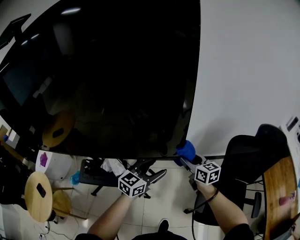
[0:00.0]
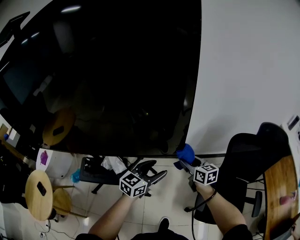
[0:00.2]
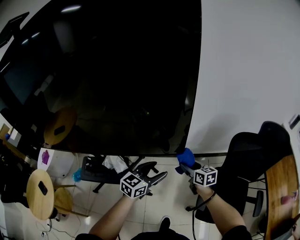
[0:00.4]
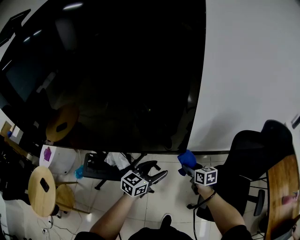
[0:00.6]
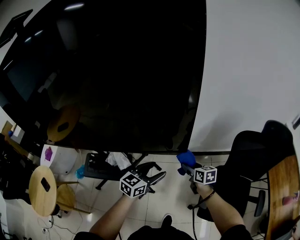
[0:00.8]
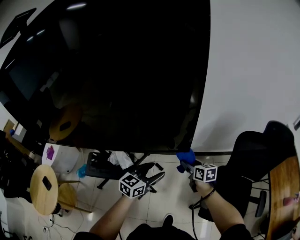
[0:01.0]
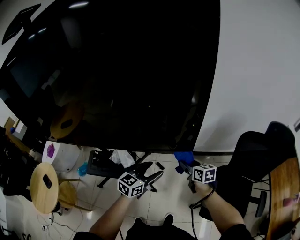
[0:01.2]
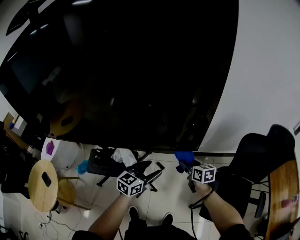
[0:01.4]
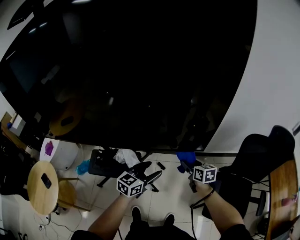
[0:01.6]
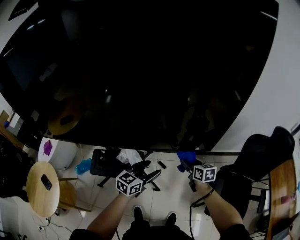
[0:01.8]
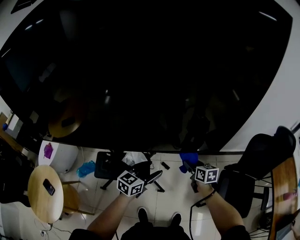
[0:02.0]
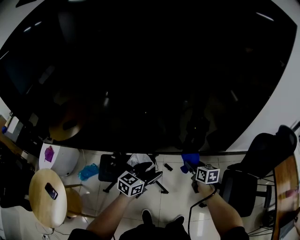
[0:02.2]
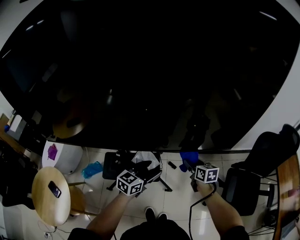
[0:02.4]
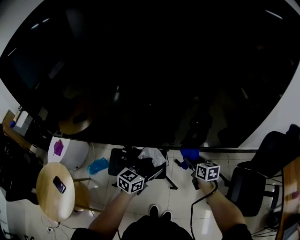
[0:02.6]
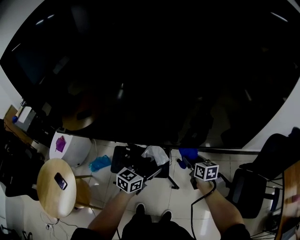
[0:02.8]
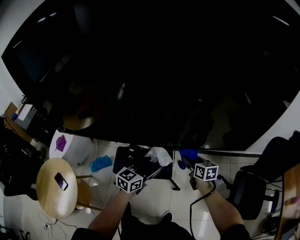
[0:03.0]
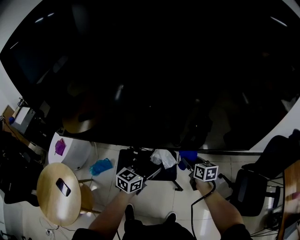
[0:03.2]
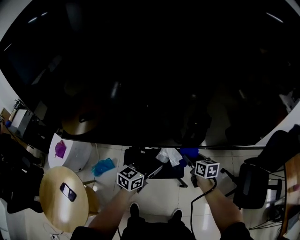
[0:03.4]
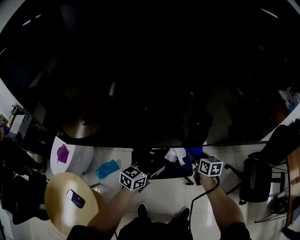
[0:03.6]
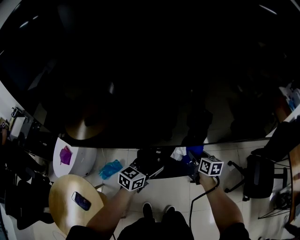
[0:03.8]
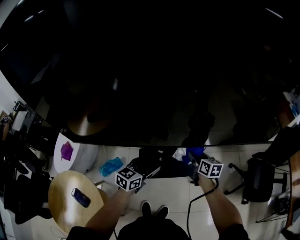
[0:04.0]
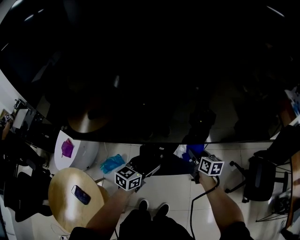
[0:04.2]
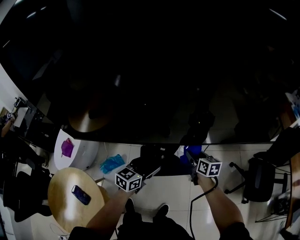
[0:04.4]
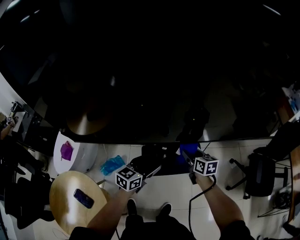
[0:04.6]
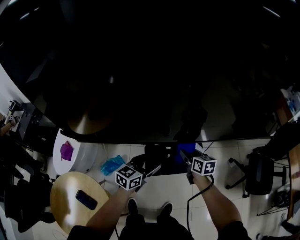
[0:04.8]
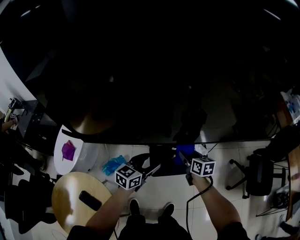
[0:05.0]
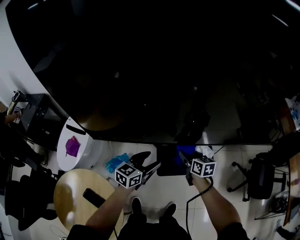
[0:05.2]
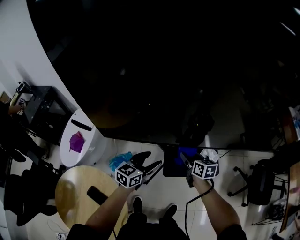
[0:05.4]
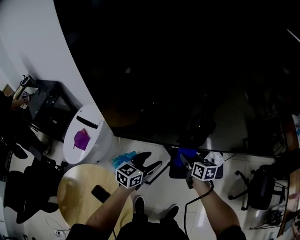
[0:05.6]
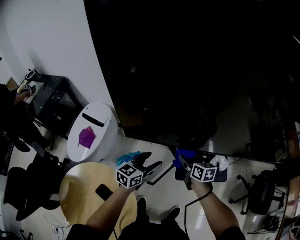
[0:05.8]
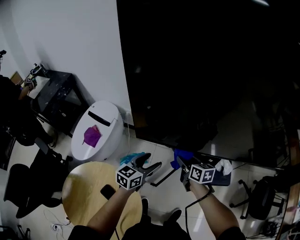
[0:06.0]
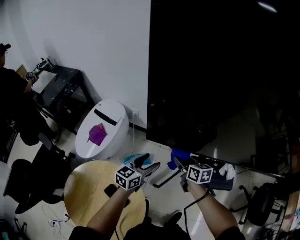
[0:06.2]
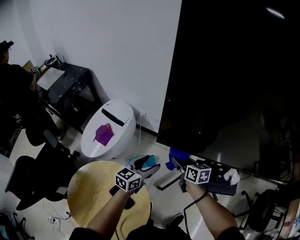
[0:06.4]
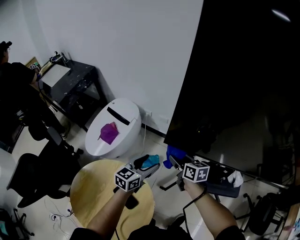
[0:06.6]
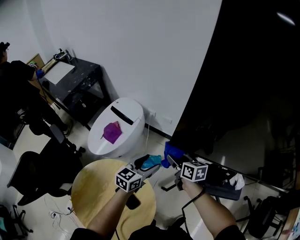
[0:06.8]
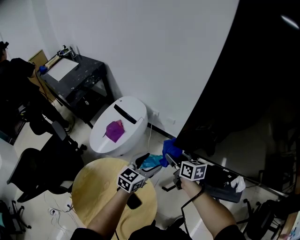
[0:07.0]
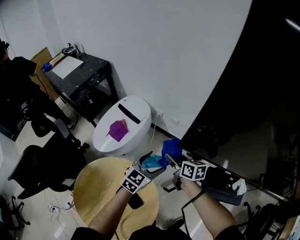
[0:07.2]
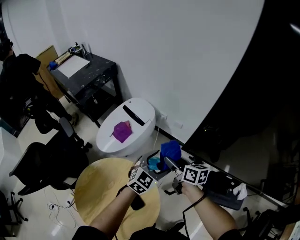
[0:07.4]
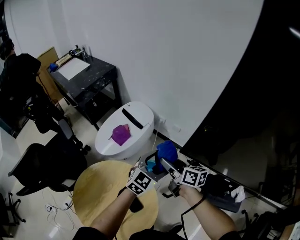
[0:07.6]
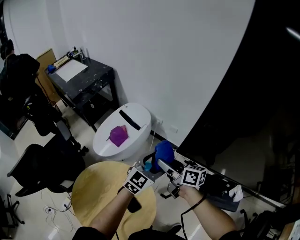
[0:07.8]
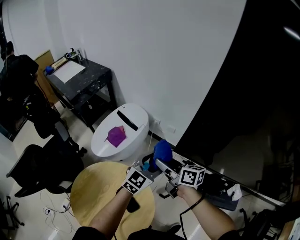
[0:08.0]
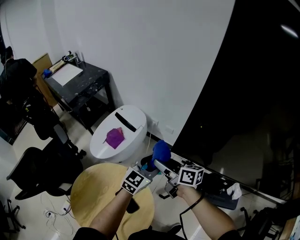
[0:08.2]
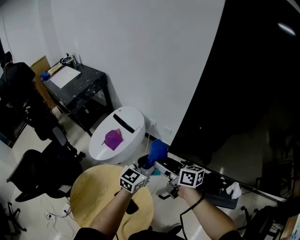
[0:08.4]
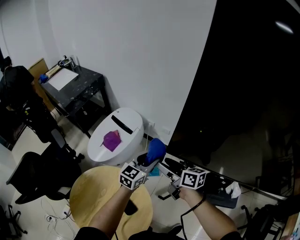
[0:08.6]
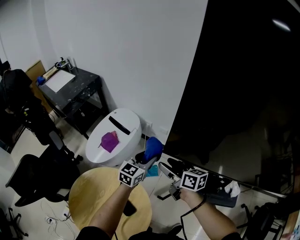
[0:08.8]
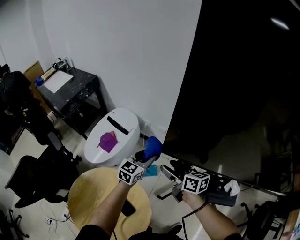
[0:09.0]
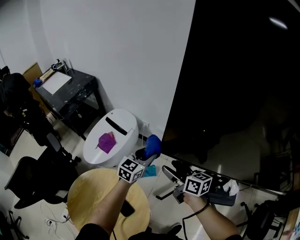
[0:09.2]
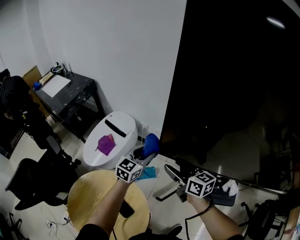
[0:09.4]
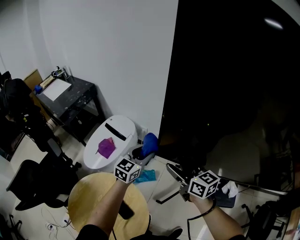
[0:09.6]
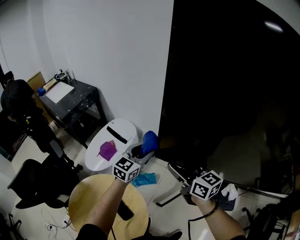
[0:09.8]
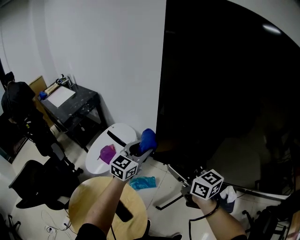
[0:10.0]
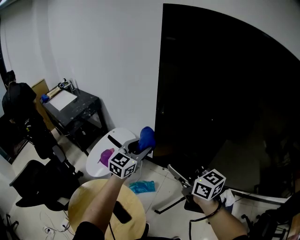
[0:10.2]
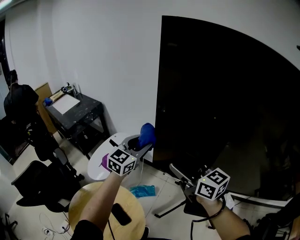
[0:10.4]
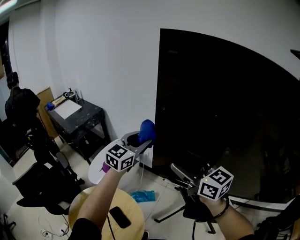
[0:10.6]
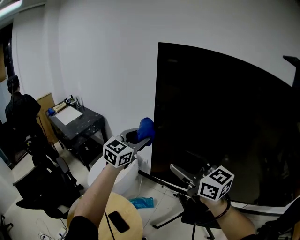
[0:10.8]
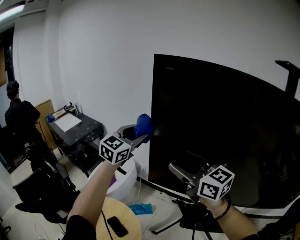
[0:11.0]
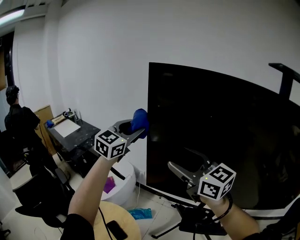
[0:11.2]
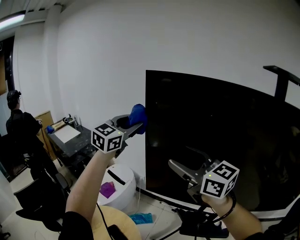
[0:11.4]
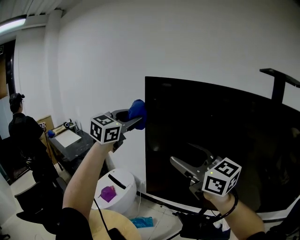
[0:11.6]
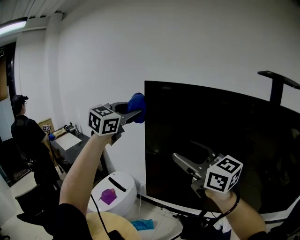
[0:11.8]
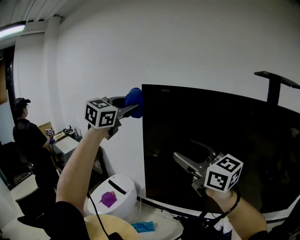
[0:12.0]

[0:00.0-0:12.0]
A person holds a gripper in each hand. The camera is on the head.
0:00.0 to 0:01.6: The left gripper shifts about 15 cm to the left, while the right gripper heads to the left and downward, covering some 15 cm.
0:01.6 to 0:03.0: The grippers both shift to the left by some 25 cm.
0:03.0 to 0:04.4: The two grippers go roughly 25 cm to the left.
0:04.4 to 0:06.0: The grippers both shift to the left by approximately 40 cm.
0:06.0 to 0:07.6: The left gripper travels to the left by approximately 15 cm, and changes its angle by some 30 degrees; the right gripper heads to the left, covering roughly 30 cm, and changes its angle by approximately 30 degrees.
0:07.6 to 0:09.0: The left gripper shifts by some 5 cm, and closes its fingers; the right gripper shifts roughly 10 cm to the right.
0:09.0 to 0:10.4: The grippers both shift upward by about 25 cm. The right gripper rotates roughly 30 degrees.
0:10.4 to 0:12.0: The right gripper is displaced upward by some 25 cm, and changes its angle by roughly 20 degrees, while the left gripper heads upward, covering some 40 cm.

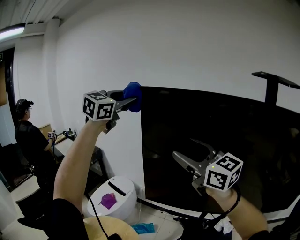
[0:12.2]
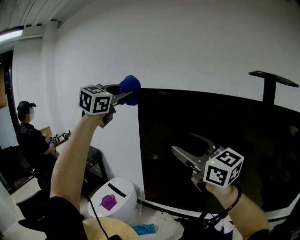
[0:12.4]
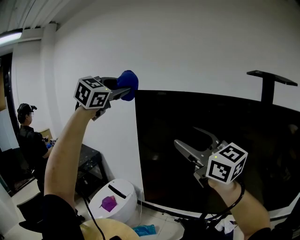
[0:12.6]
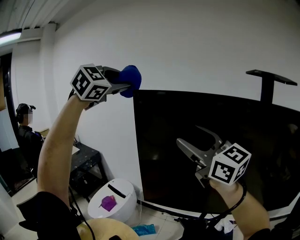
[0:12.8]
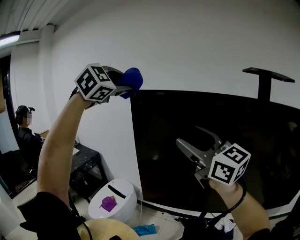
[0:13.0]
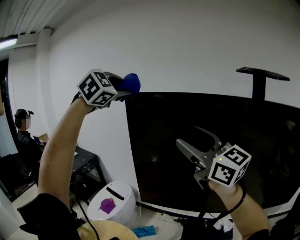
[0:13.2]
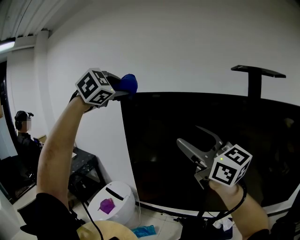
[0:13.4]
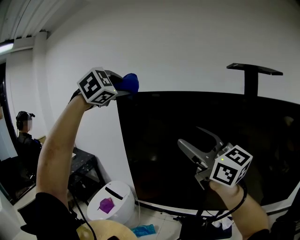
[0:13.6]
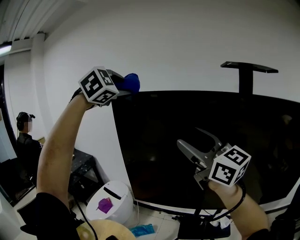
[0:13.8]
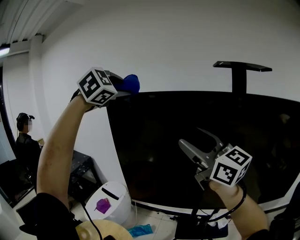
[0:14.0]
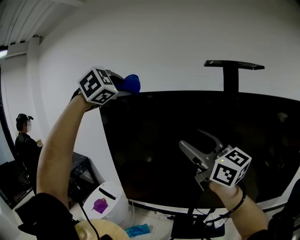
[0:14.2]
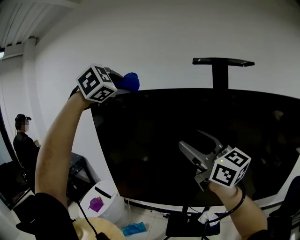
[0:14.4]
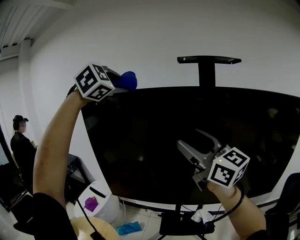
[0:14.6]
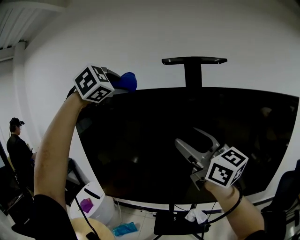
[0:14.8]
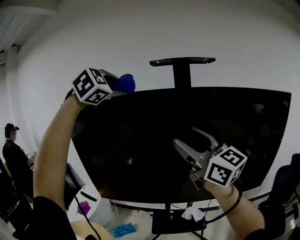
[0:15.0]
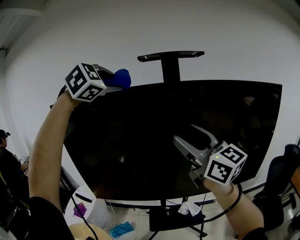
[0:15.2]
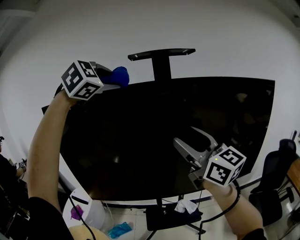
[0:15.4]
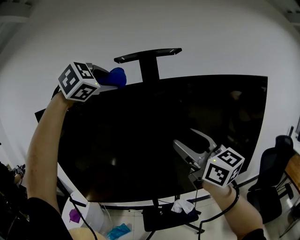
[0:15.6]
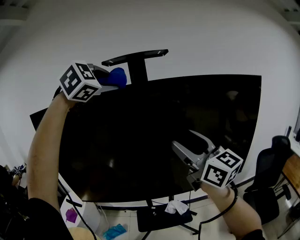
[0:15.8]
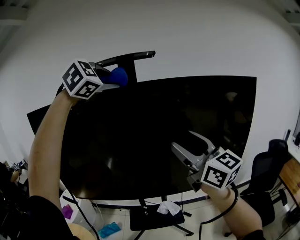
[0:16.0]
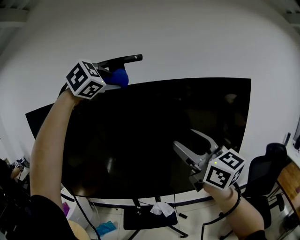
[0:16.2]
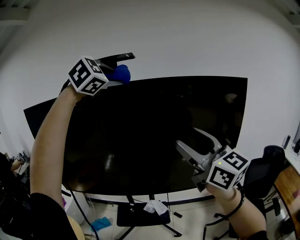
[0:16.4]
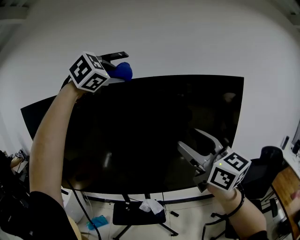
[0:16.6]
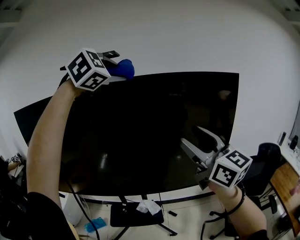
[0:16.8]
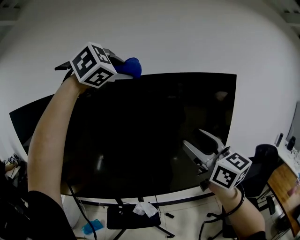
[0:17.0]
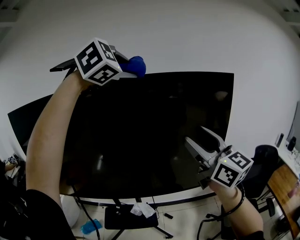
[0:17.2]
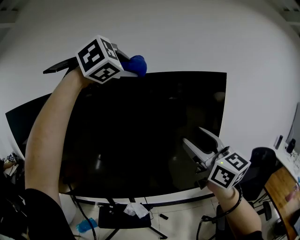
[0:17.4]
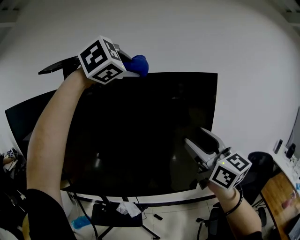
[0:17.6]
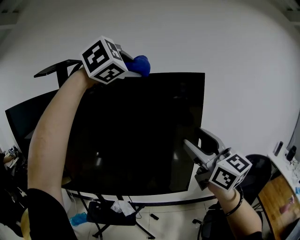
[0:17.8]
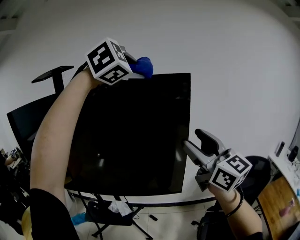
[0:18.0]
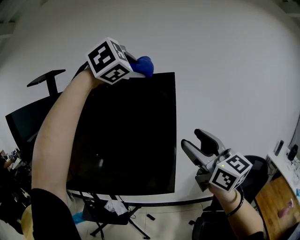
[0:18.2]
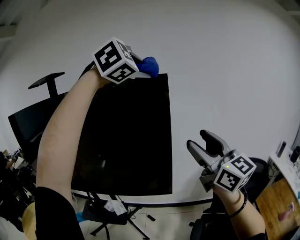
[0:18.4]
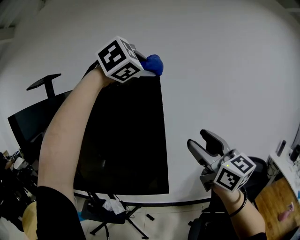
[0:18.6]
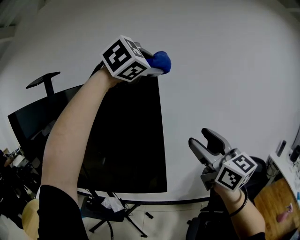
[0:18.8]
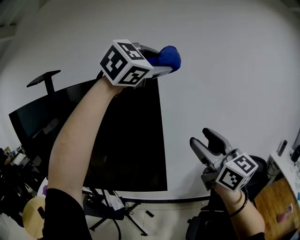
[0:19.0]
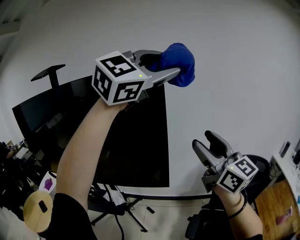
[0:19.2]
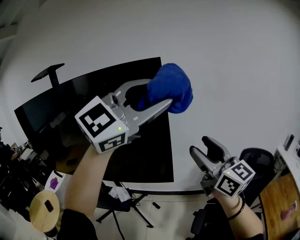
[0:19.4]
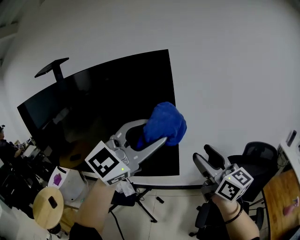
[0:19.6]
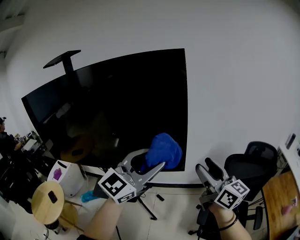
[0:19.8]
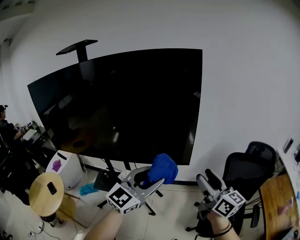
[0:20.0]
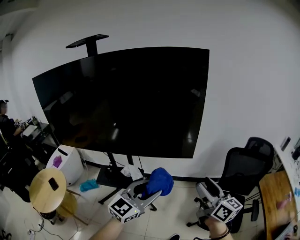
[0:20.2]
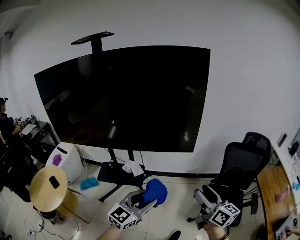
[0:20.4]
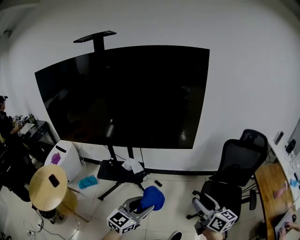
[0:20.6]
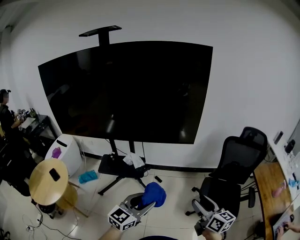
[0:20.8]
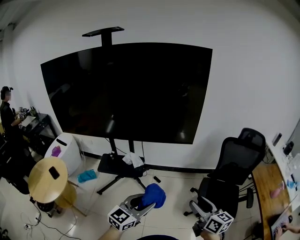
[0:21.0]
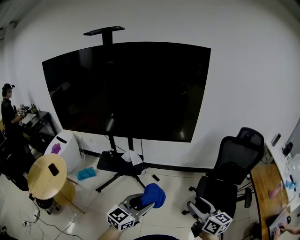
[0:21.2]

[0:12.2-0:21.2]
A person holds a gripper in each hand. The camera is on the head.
0:12.2 to 0:13.8: The left gripper goes approximately 15 cm to the right and backward, and changes its angle by about 40 degrees; the right gripper travels to the right, backward and upward by some 15 cm.
0:13.8 to 0:15.2: The right gripper is displaced to the right and backward by roughly 25 cm. The left gripper goes about 25 cm to the right.
0:15.2 to 0:16.6: The grippers both shift to the right by approximately 30 cm.
0:16.6 to 0:18.2: Both grippers move to the right, approximately 40 cm.
0:18.2 to 0:19.8: The right gripper goes about 20 cm downward, and turns by approximately 20 degrees; the left gripper shifts some 35 cm downward and backward, and angles its fingers upward, by some 30 degrees.
0:19.8 to 0:21.2: The two grippers go approximately 40 cm backward and downward. The right gripper swivels some 20 degrees, while the left gripper turns by roughly 30 degrees.

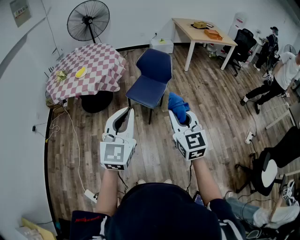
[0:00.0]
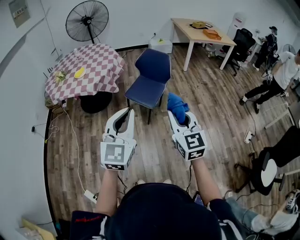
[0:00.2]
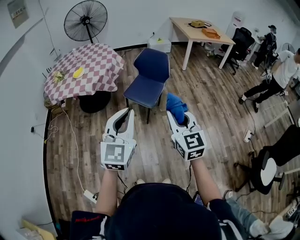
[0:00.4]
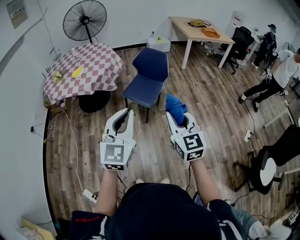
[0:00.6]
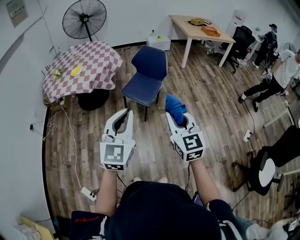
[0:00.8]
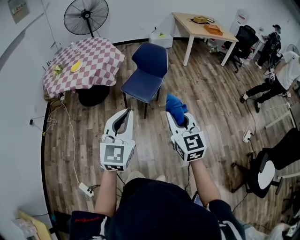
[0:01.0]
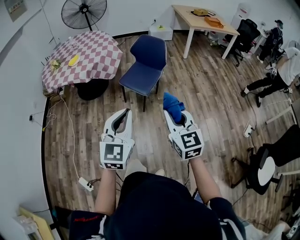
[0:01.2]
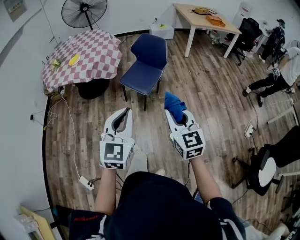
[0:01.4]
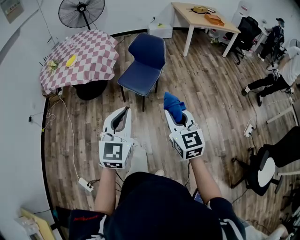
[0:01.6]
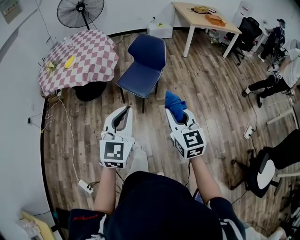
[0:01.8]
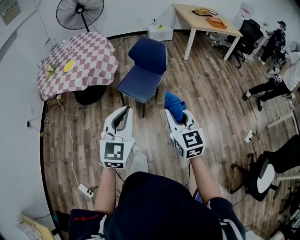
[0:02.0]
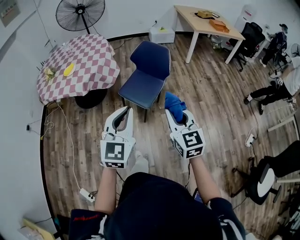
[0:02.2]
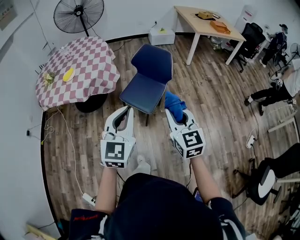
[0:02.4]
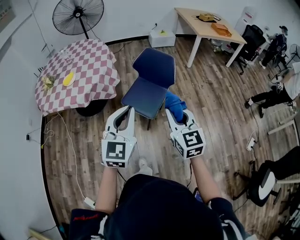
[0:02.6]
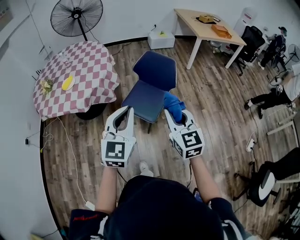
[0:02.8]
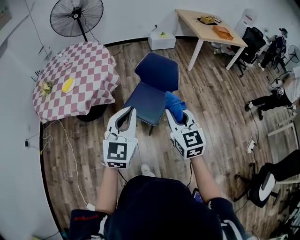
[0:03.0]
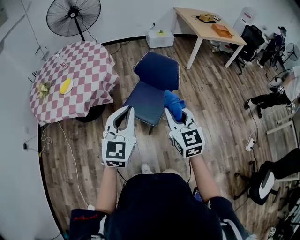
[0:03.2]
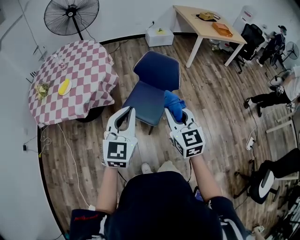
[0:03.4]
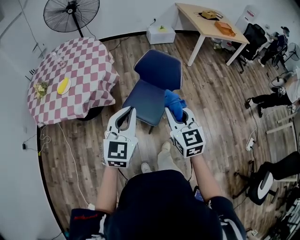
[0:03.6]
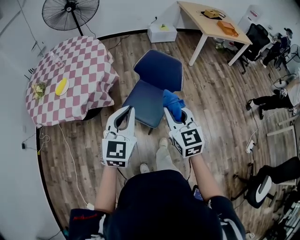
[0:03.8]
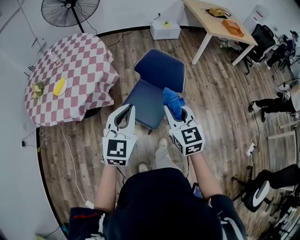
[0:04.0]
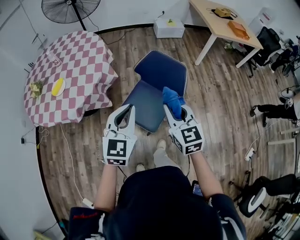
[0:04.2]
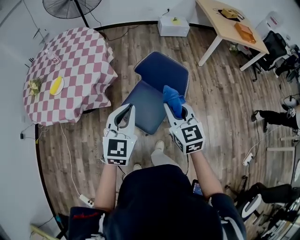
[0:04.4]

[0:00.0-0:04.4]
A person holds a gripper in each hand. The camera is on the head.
0:00.0 to 0:01.4: Both grippers travel together to the right and downward, some 10 cm.
0:01.4 to 0:03.0: Both grippers travel together forward, approximately 35 cm.
0:03.0 to 0:04.4: Both grippers travel together forward, about 25 cm.
